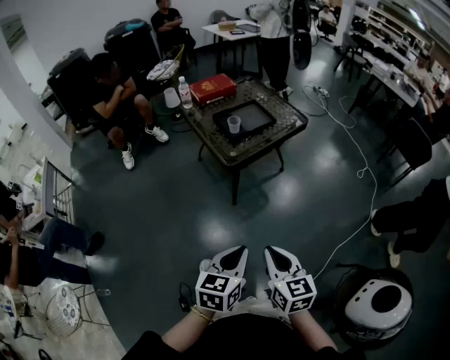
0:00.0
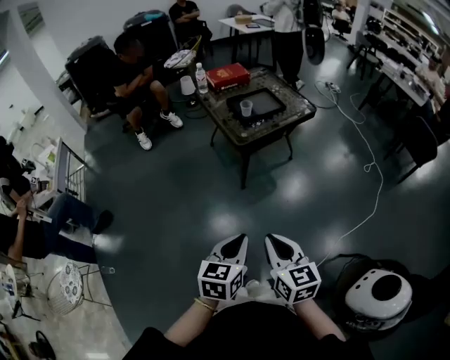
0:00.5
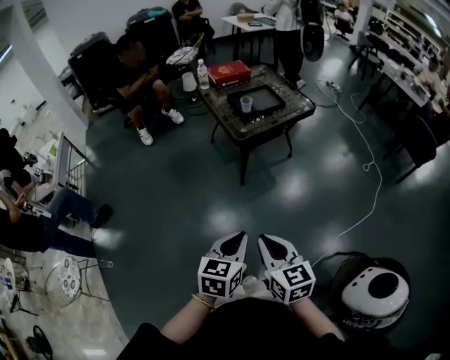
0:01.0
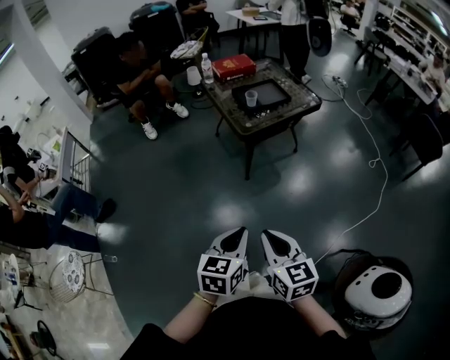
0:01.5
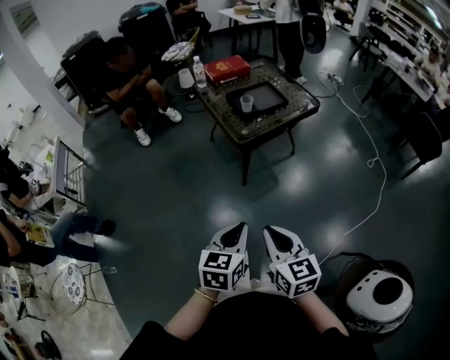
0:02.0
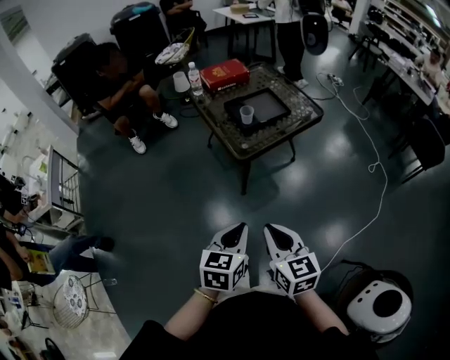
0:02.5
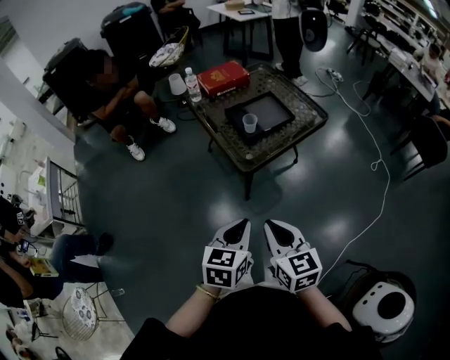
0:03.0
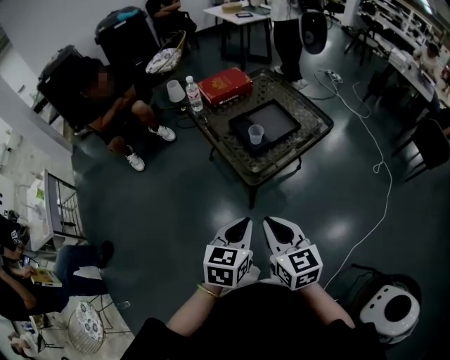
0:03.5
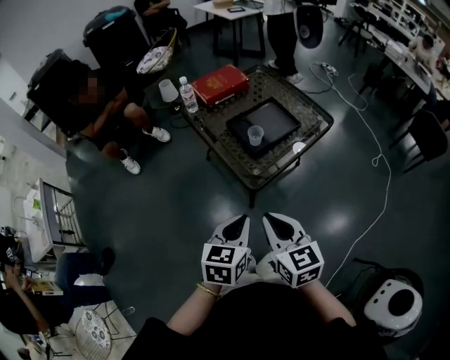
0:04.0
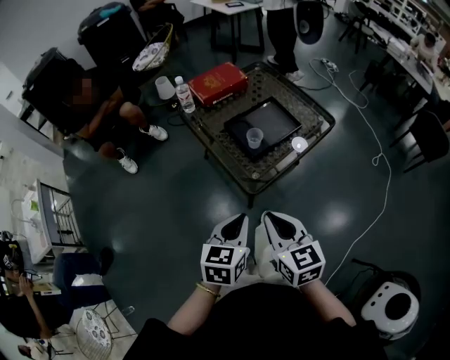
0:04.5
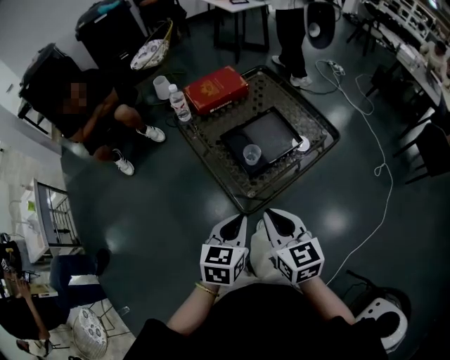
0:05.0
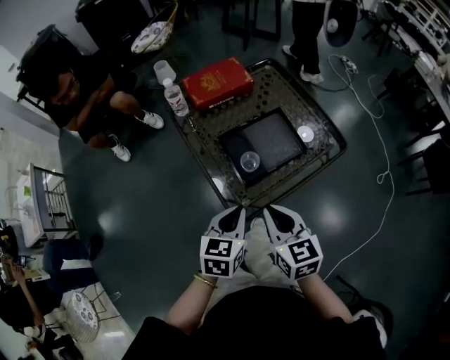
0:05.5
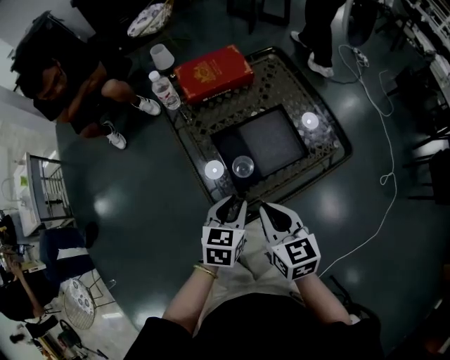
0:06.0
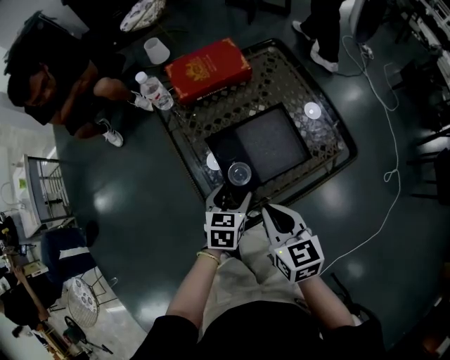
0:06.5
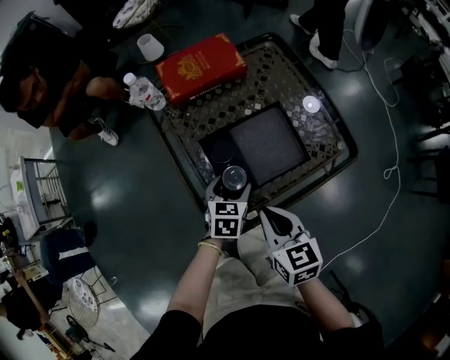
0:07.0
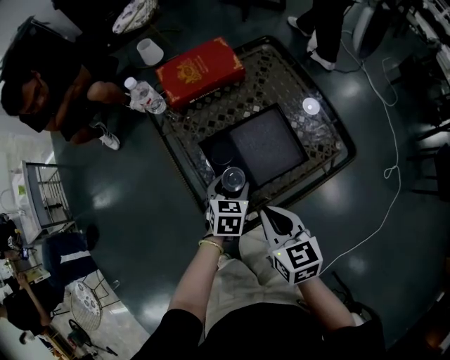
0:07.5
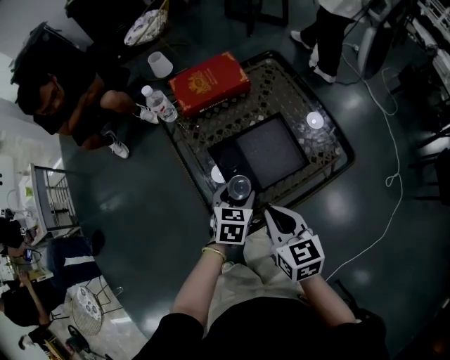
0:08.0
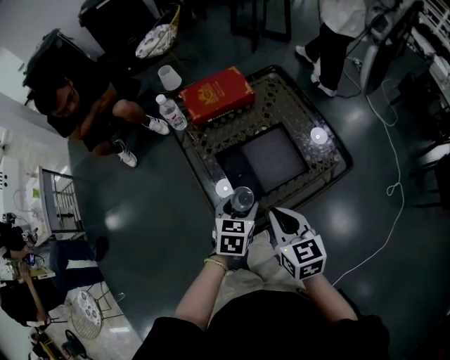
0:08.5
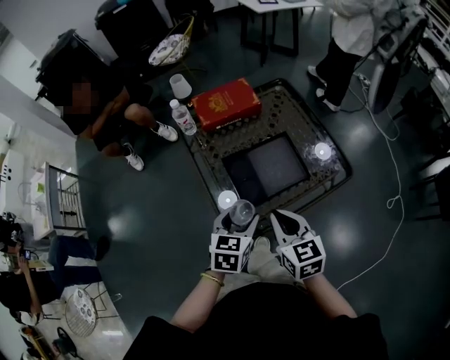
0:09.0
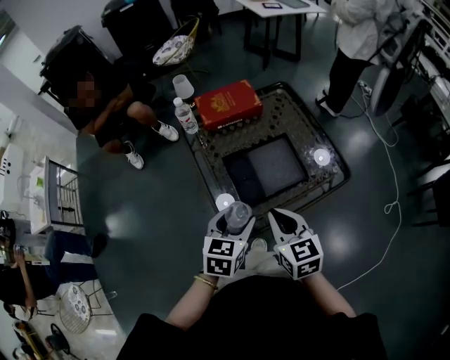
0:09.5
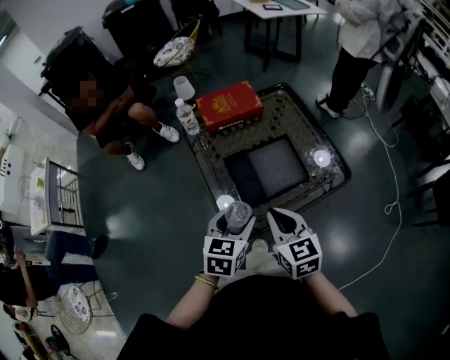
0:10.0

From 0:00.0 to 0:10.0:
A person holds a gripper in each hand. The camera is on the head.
From 0:00.0 to 0:02.0: The right gripper moves about 10 cm backward and comes back. The left gripper moves approximately 10 cm backward and comes back.
From 0:02.0 to 0:04.0: The two grippers go roughly 30 cm forward.
From 0:04.0 to 0:06.0: The left gripper shifts about 30 cm forward and downward, while the right gripper shifts about 25 cm forward.
From 0:06.0 to 0:08.0: The left gripper heads forward and downward, covering about 10 cm, and opens up.
From 0:08.0 to 0:10.0: The right gripper heads upward, covering approximately 5 cm, while the left gripper travels upward and backward by about 15 cm.

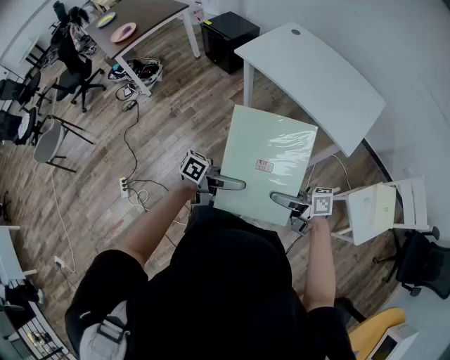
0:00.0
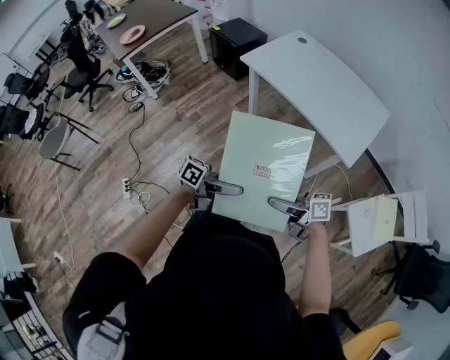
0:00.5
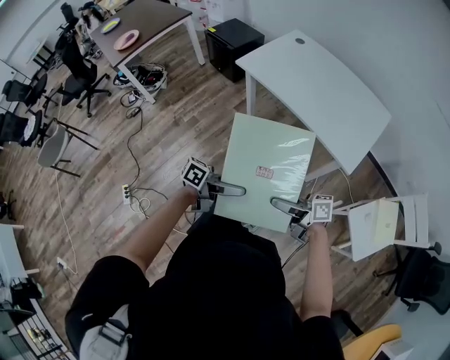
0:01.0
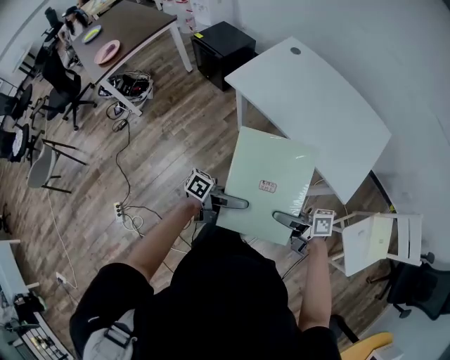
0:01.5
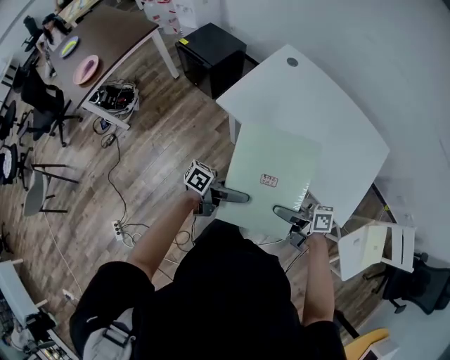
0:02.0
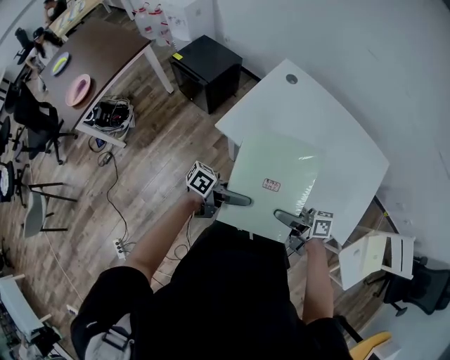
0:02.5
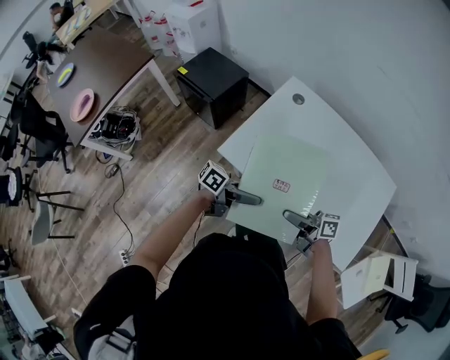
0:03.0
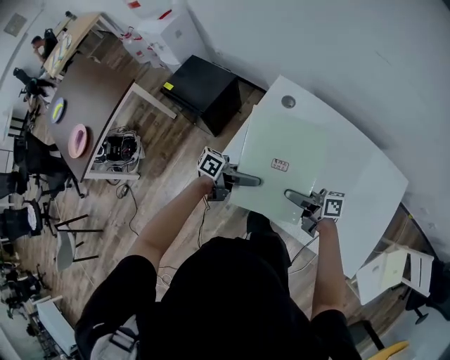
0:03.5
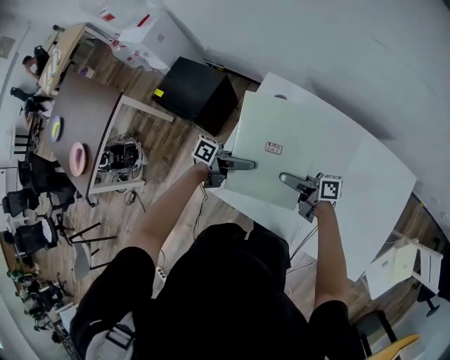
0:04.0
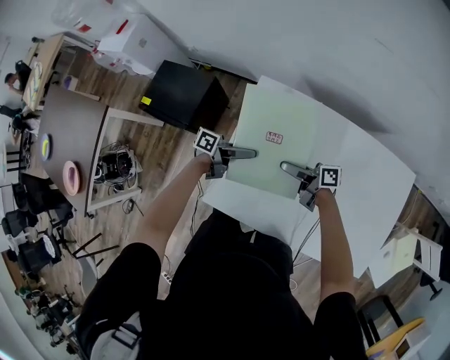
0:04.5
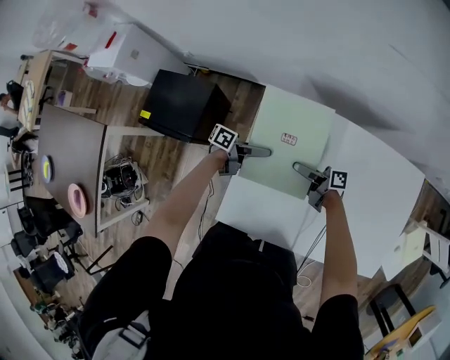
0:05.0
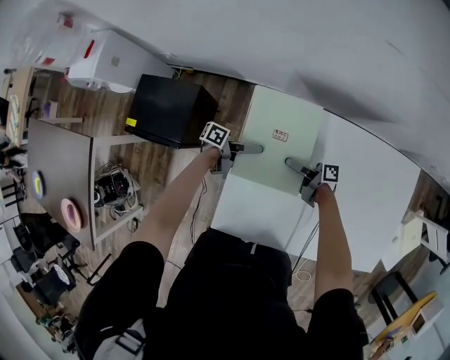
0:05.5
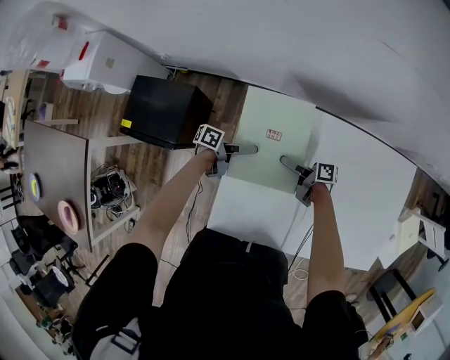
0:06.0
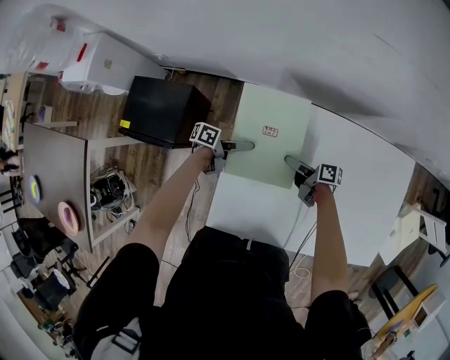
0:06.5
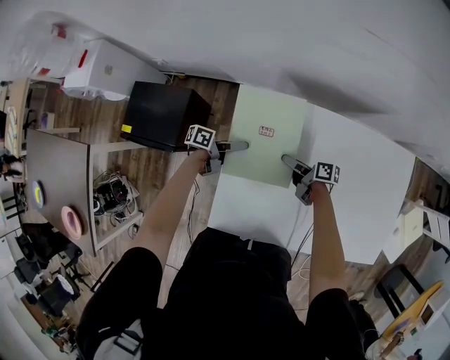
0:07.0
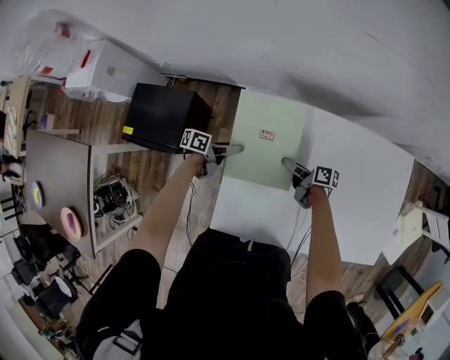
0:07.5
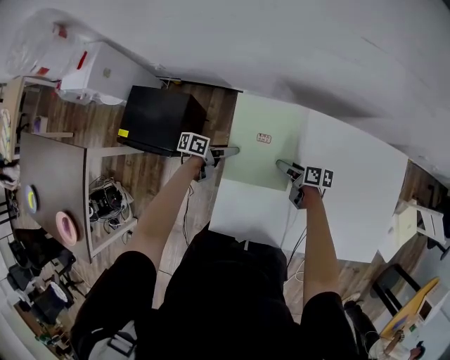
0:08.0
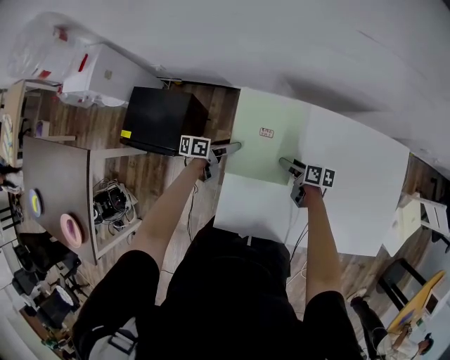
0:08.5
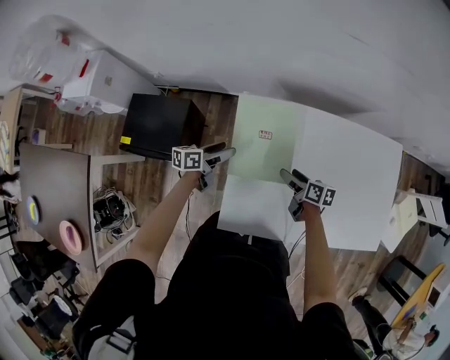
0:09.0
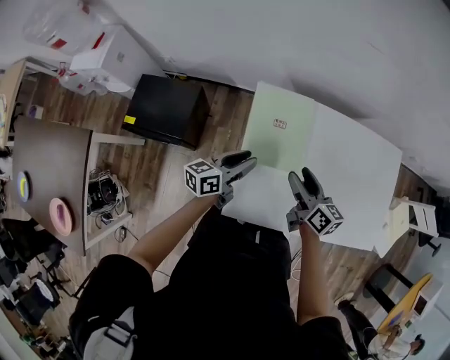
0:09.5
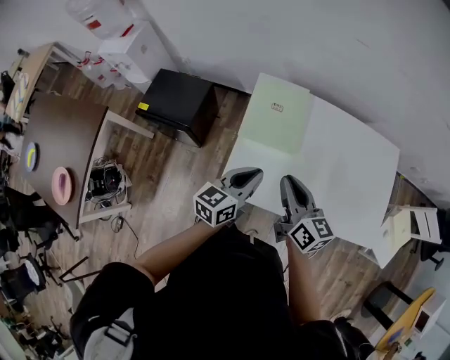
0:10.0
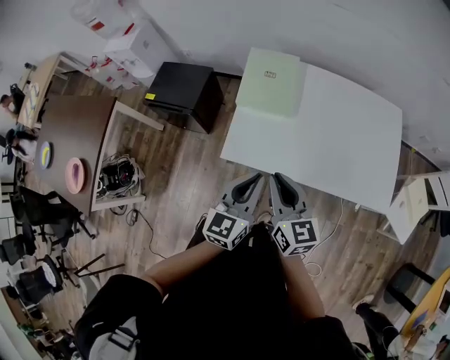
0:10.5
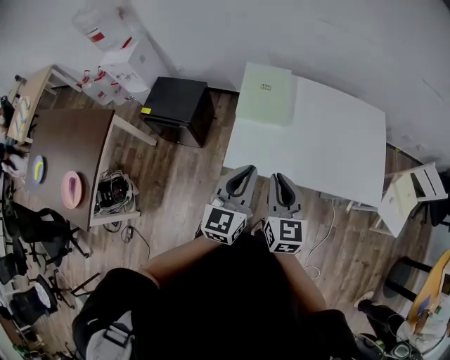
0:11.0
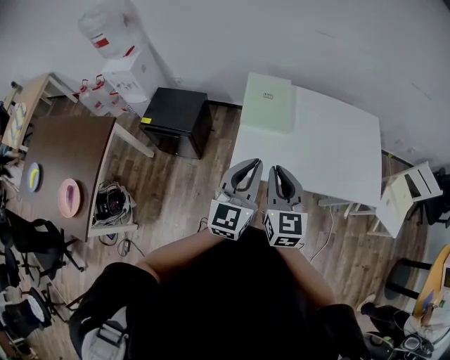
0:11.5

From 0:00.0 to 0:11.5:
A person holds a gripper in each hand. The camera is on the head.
From 0:00.0 to 0:02.0: The right gripper ends up some 35 cm from where it was; the left gripper ends up some 35 cm from where it was.
From 0:02.0 to 0:04.0: The two grippers travel together, approximately 50 cm.
From 0:04.0 to 0:06.0: The left gripper moves roughly 20 cm. Meanwhile the right gripper ends up approximately 20 cm from where it was, and rotates about 30 degrees.
From 0:06.0 to 0:07.5: The left gripper shifts by roughly 5 cm.
From 0:07.5 to 0:09.5: The grippers both shift upward by some 20 cm. The left gripper rotates about 40 degrees, and closes its fingers, while the right gripper rotates about 40 degrees.
From 0:09.5 to 0:11.5: Both grippers travel together backward and upward, roughly 35 cm. The right gripper changes its angle by roughly 40 degrees, and closes its fingers, while the left gripper rolls clockwise, seen from behind, by approximately 40 degrees, and closes.

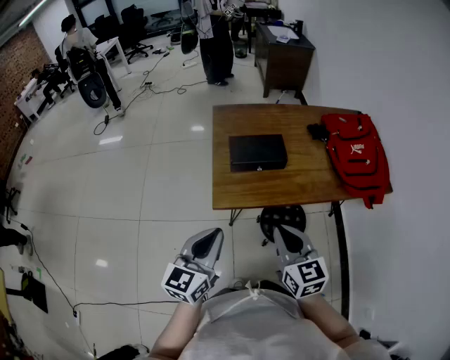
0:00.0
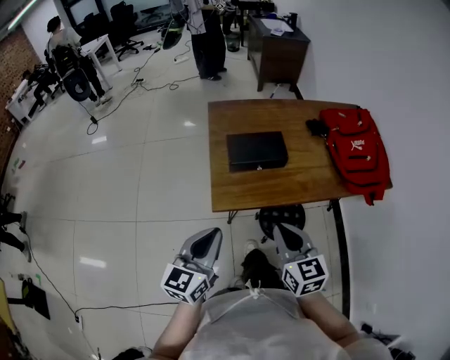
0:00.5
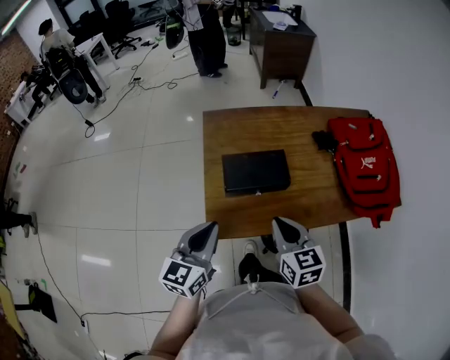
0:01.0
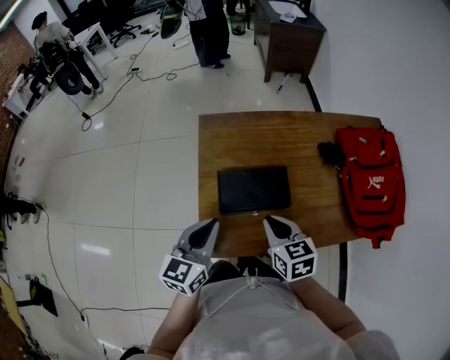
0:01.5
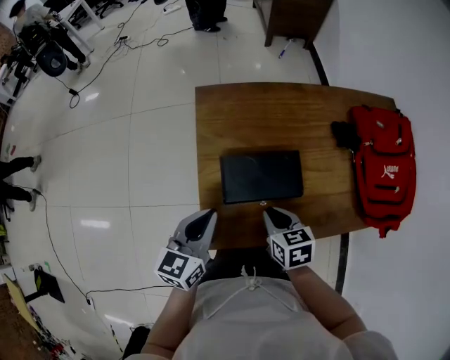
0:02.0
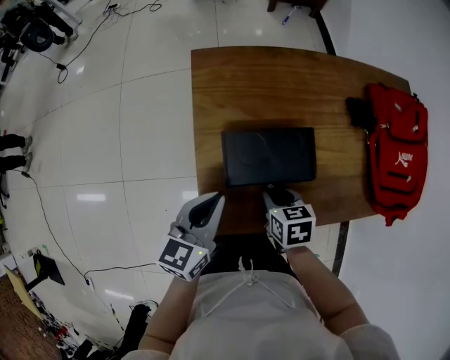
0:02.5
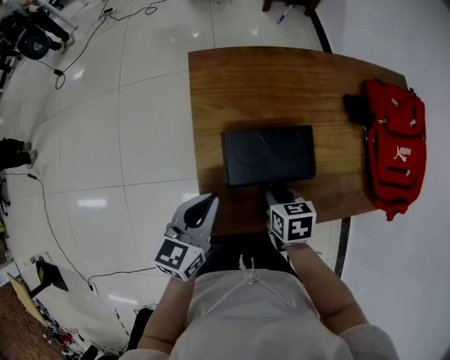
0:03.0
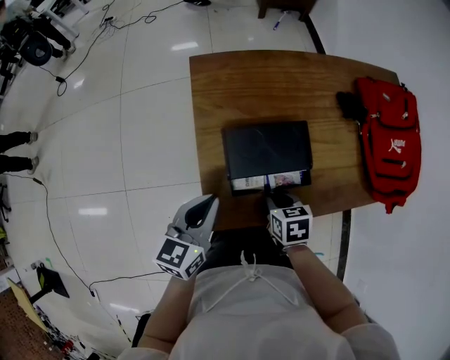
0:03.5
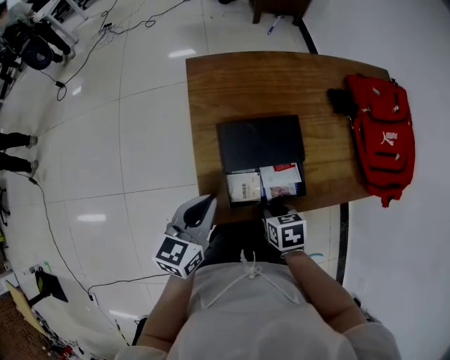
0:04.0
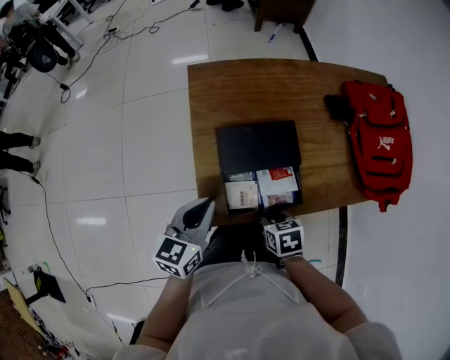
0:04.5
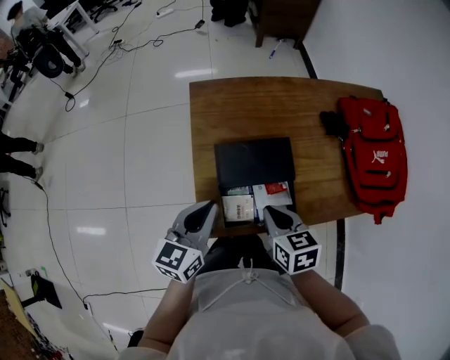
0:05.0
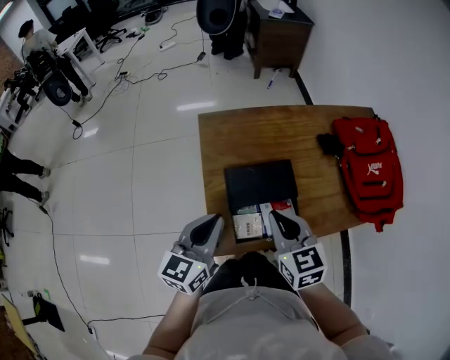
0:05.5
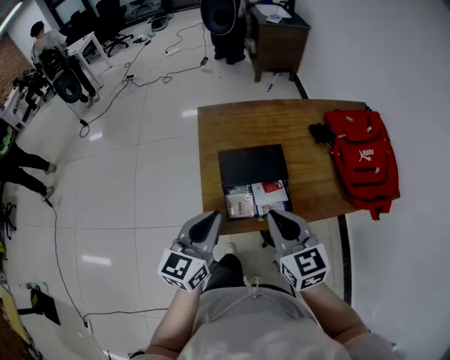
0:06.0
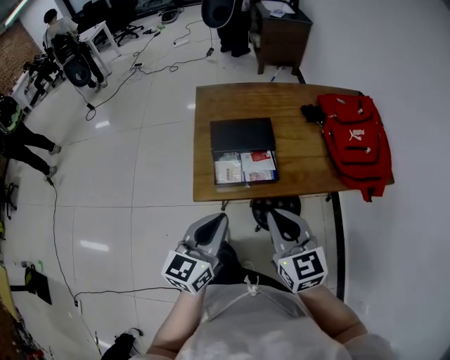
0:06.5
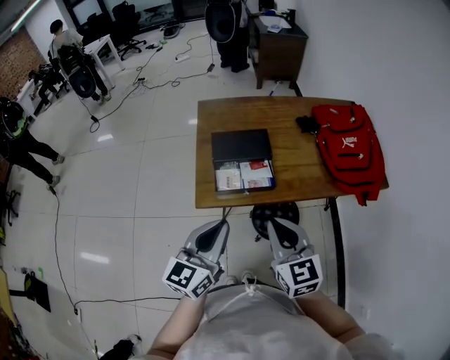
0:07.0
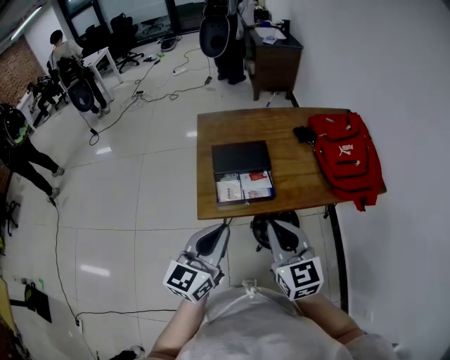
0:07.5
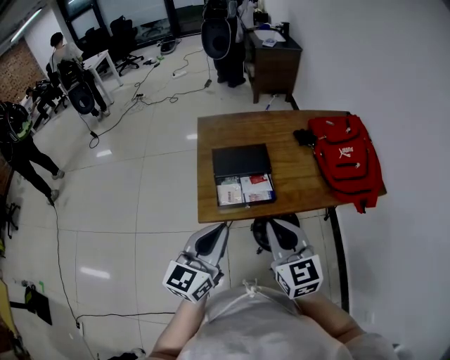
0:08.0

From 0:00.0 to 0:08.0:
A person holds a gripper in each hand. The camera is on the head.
From 0:00.0 to 0:02.0: The left gripper travels forward by some 30 cm, while the right gripper is displaced forward and downward by some 30 cm, and angles its fingers downward, by approximately 30 degrees.
From 0:02.0 to 0:04.0: The left gripper changes place by about 5 cm. Meanwhile the right gripper goes approximately 10 cm backward and downward.
From 0:04.0 to 0:06.0: The left gripper shifts about 10 cm upward and backward; the right gripper heads upward, covering approximately 25 cm, and tilts its fingers about 40 degrees upward.
From 0:06.0 to 0:08.0: The two grippers go roughly 15 cm backward and to the right.
